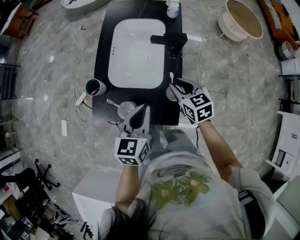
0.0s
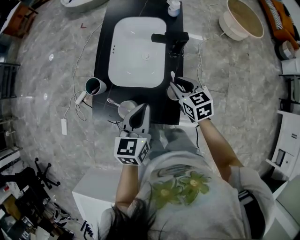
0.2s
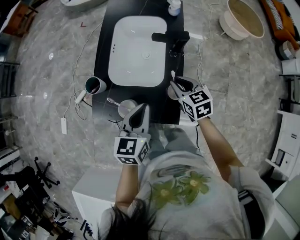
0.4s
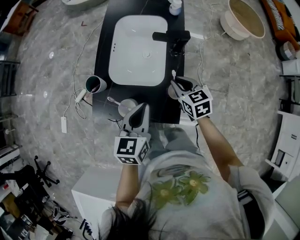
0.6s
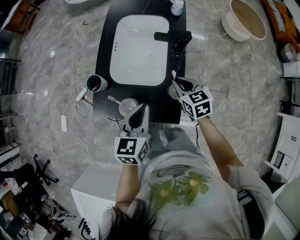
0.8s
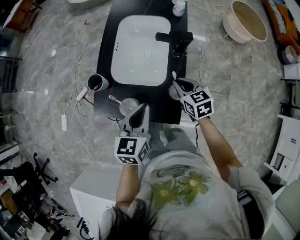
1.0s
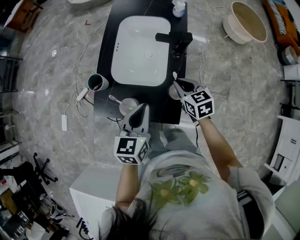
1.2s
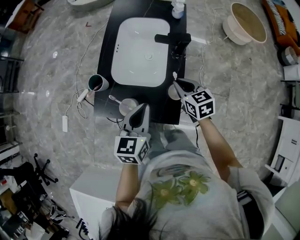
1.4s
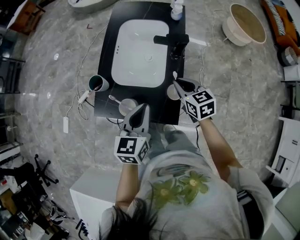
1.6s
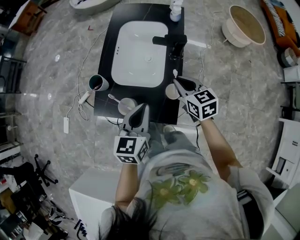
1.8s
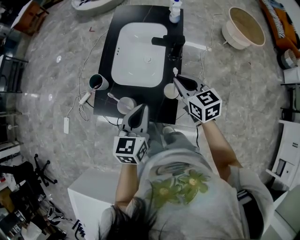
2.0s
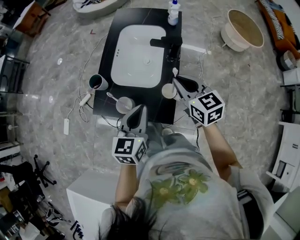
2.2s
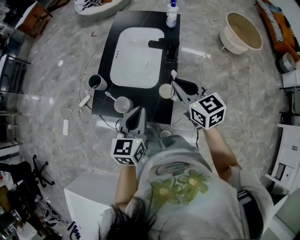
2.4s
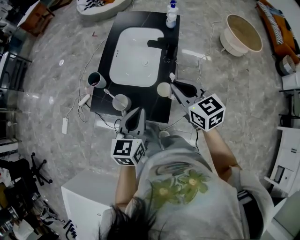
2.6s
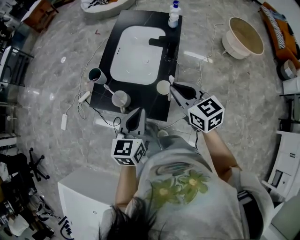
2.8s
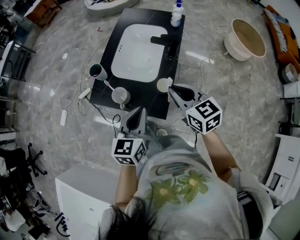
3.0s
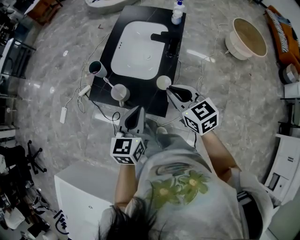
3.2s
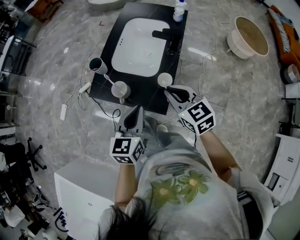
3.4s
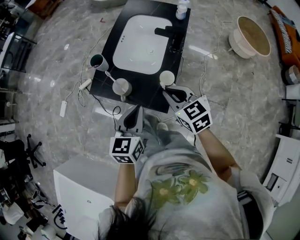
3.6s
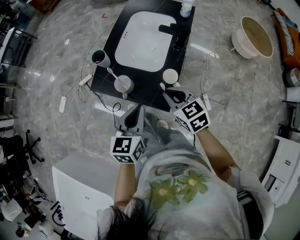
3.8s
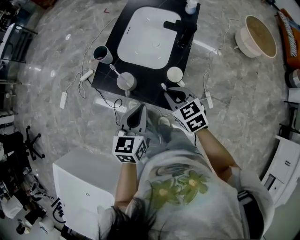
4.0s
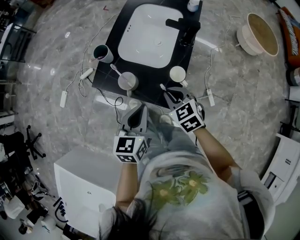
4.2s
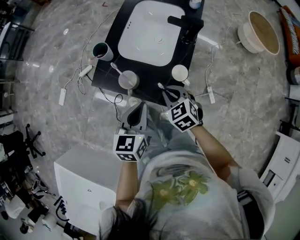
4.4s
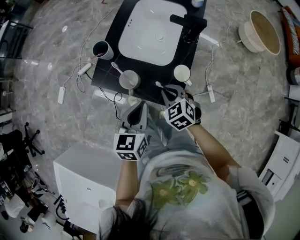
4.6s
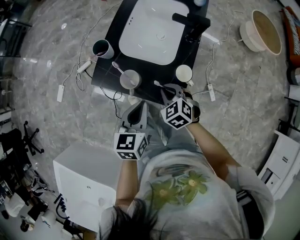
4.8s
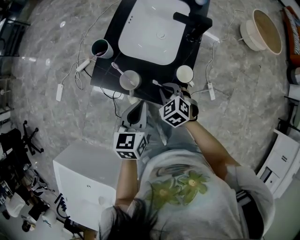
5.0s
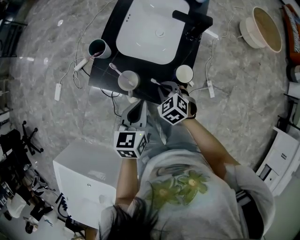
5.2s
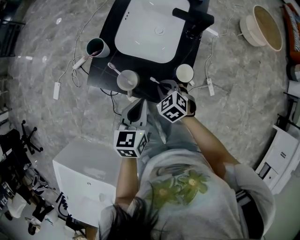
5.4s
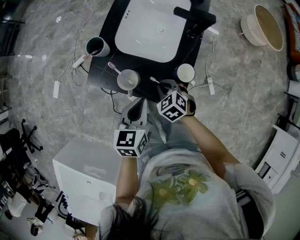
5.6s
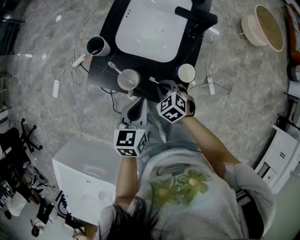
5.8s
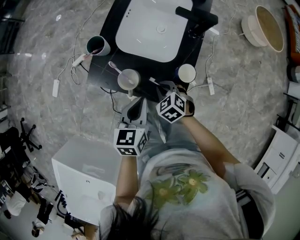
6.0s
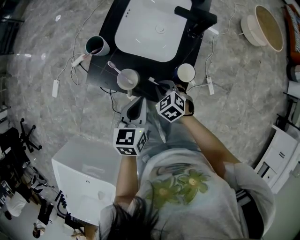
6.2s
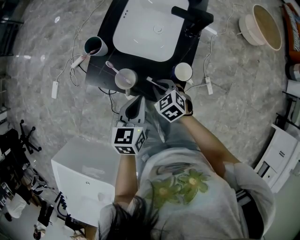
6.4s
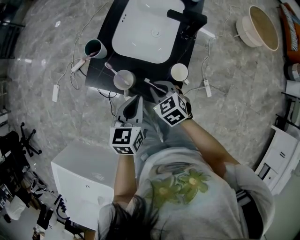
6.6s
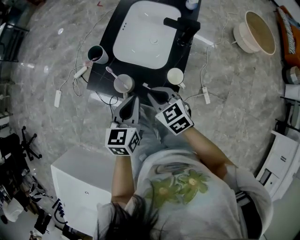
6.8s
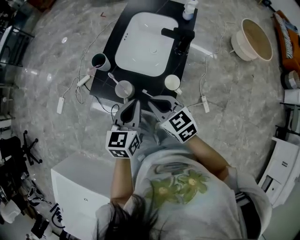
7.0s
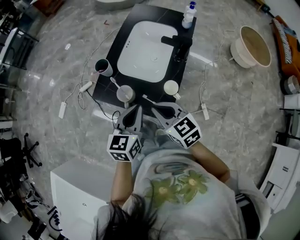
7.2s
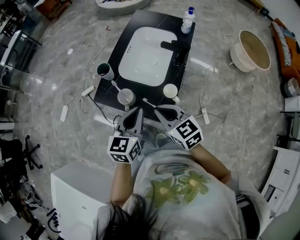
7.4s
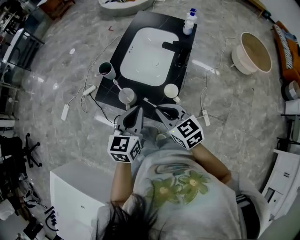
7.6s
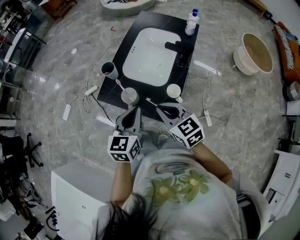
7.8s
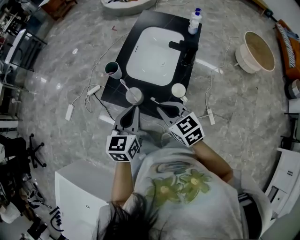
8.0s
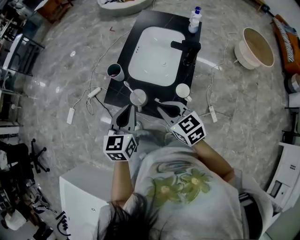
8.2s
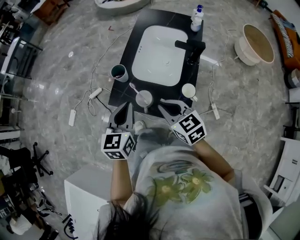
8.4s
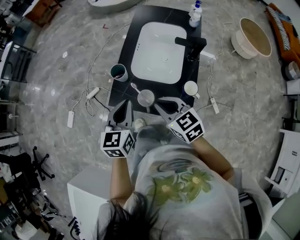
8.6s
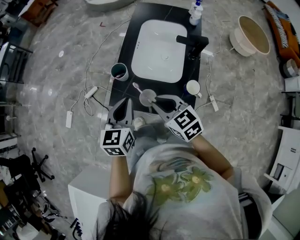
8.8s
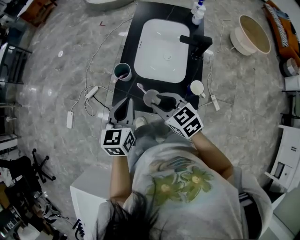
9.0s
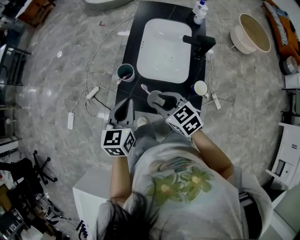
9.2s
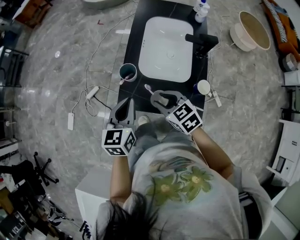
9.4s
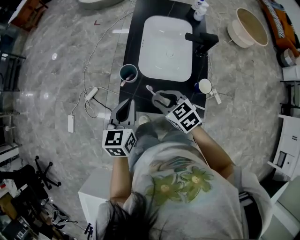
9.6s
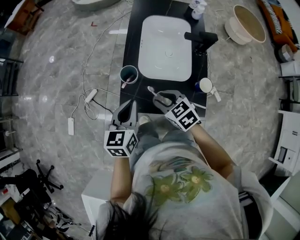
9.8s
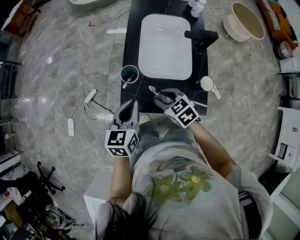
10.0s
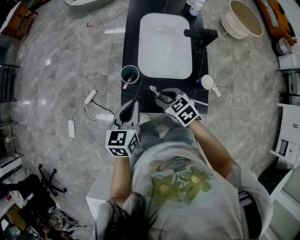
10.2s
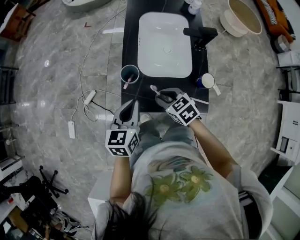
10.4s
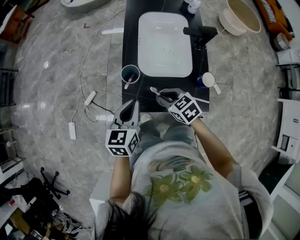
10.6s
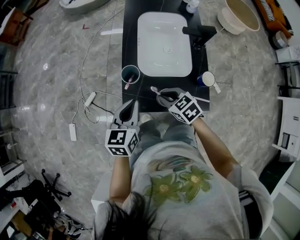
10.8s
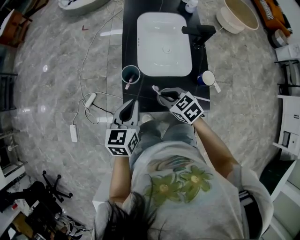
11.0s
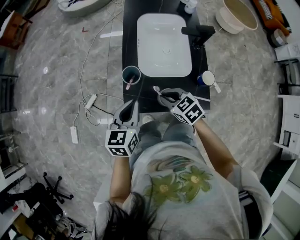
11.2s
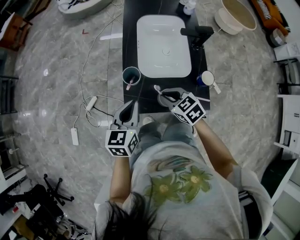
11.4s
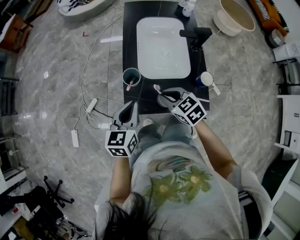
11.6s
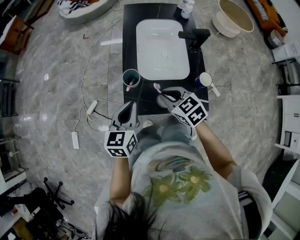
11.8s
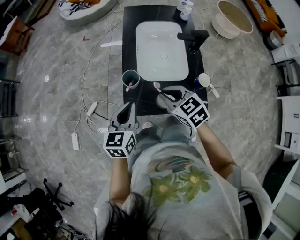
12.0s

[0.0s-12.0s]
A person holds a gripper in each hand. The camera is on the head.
0.0s to 1.6s: There are only small adjustments of the grippers.
1.6s to 3.0s: The left gripper is displaced backward by roughly 10 cm. Meanwhile the right gripper heads upward and backward, covering some 15 cm.
3.0s to 4.4s: The right gripper travels downward and to the left by approximately 20 cm, and swivels about 30 degrees. The left gripper moves downward and to the left, about 10 cm.
4.4s to 6.0s: The right gripper goes approximately 10 cm downward; the left gripper is displaced downward by about 5 cm.
6.0s to 7.6s: The left gripper travels upward by approximately 15 cm; the right gripper moves upward, some 25 cm, and angles its fingers upward, by about 30 degrees.
7.6s to 9.0s: Both grippers move to the left and forward, approximately 20 cm.
9.0s to 10.4s: The right gripper travels downward and forward by some 10 cm. The left gripper heads to the left, covering roughly 5 cm.
10.4s to 12.0s: The right gripper goes roughly 10 cm upward.

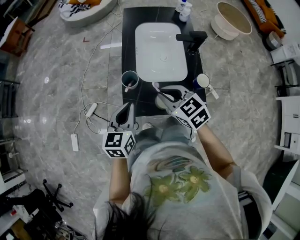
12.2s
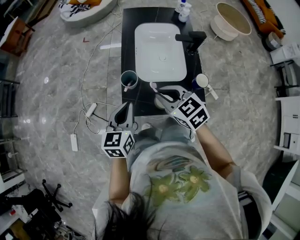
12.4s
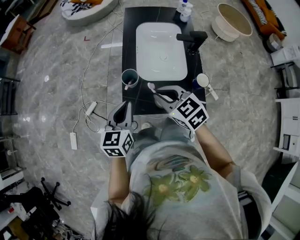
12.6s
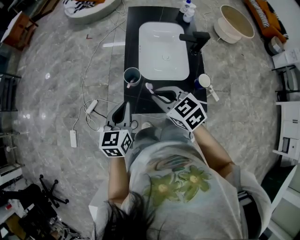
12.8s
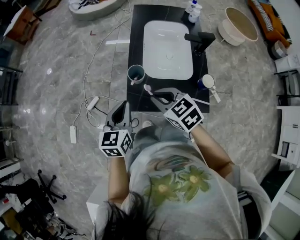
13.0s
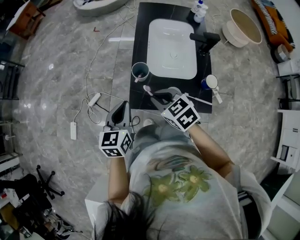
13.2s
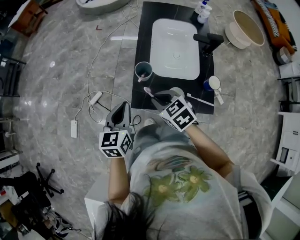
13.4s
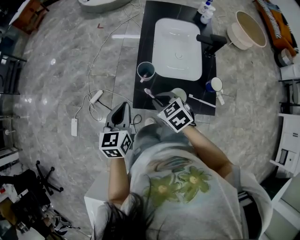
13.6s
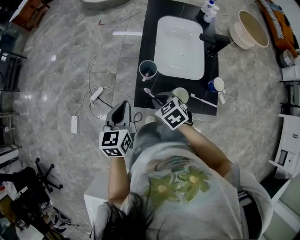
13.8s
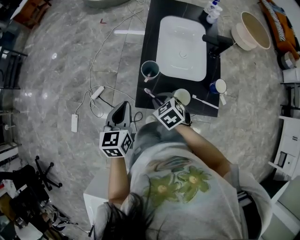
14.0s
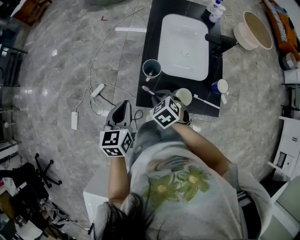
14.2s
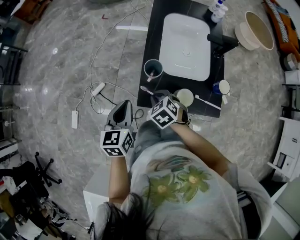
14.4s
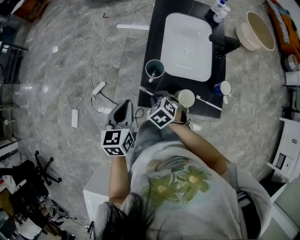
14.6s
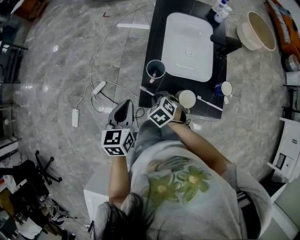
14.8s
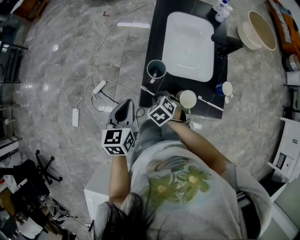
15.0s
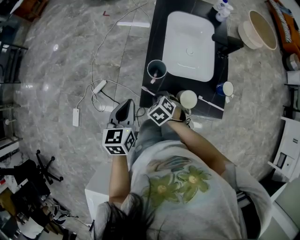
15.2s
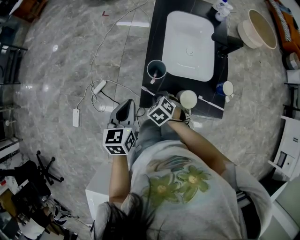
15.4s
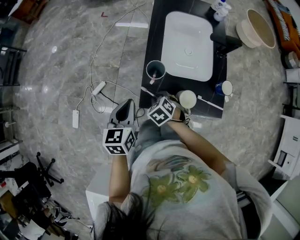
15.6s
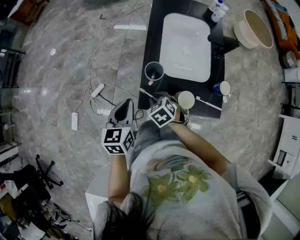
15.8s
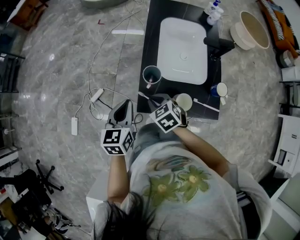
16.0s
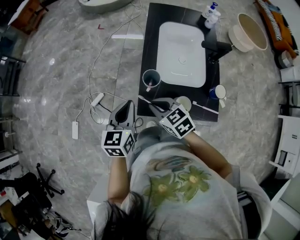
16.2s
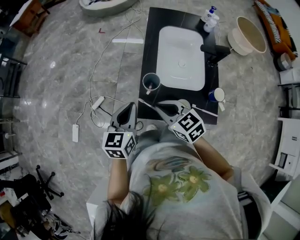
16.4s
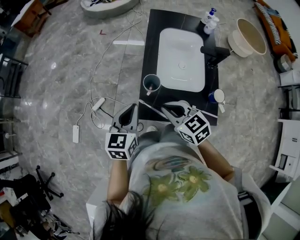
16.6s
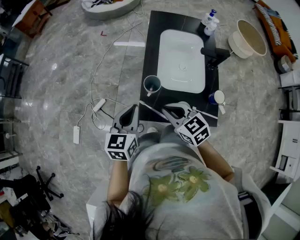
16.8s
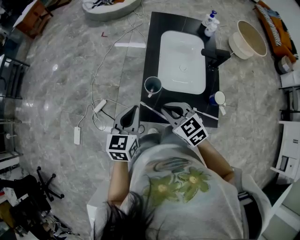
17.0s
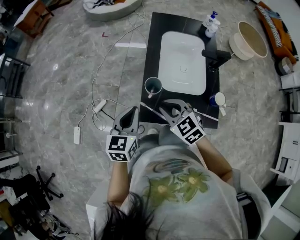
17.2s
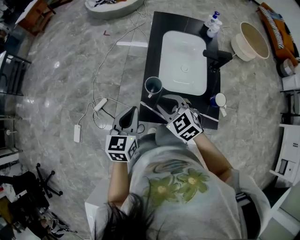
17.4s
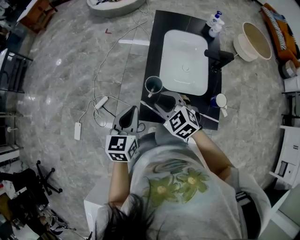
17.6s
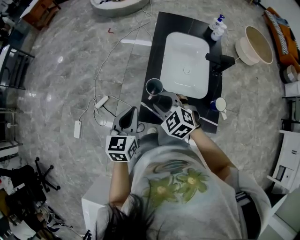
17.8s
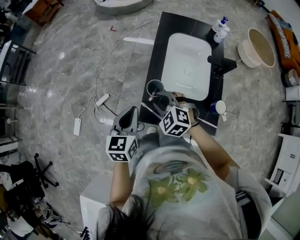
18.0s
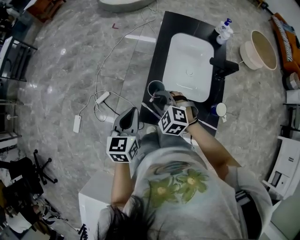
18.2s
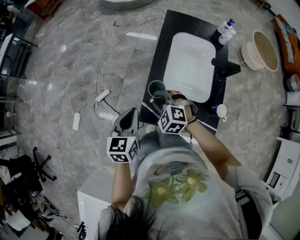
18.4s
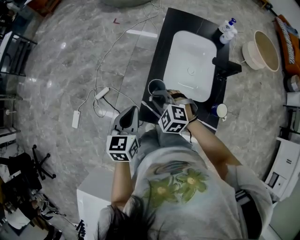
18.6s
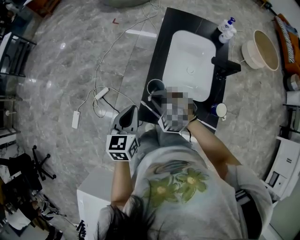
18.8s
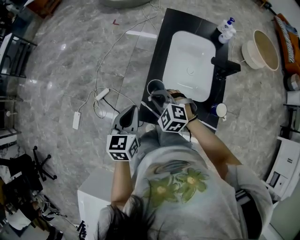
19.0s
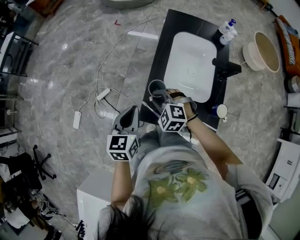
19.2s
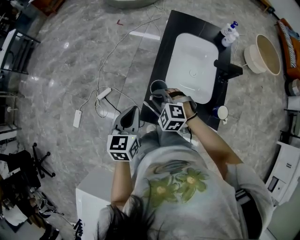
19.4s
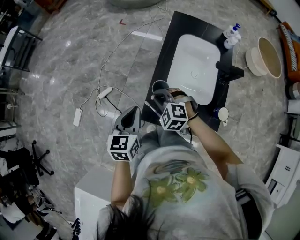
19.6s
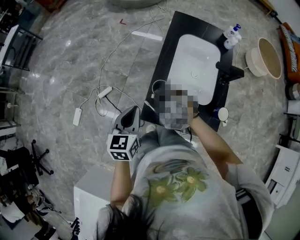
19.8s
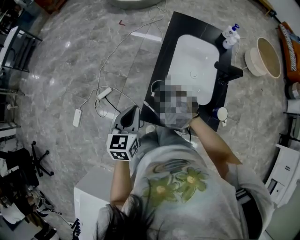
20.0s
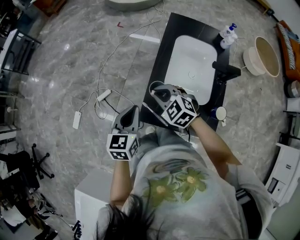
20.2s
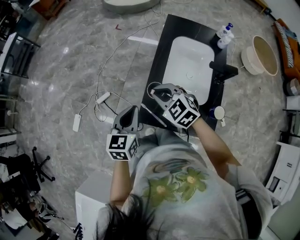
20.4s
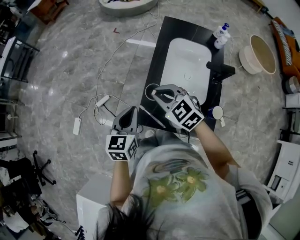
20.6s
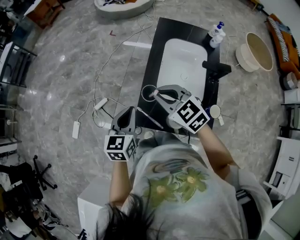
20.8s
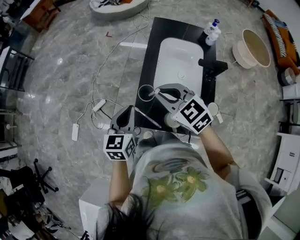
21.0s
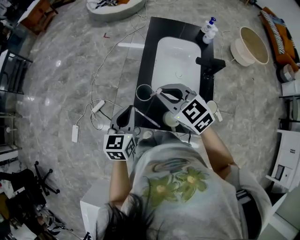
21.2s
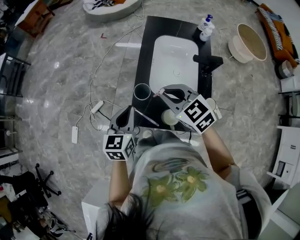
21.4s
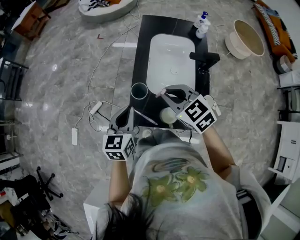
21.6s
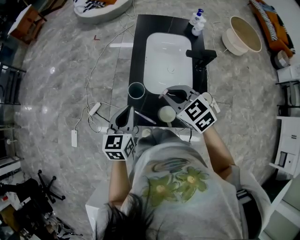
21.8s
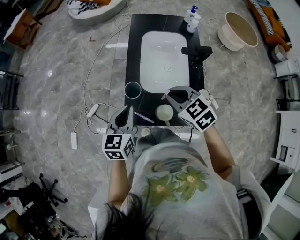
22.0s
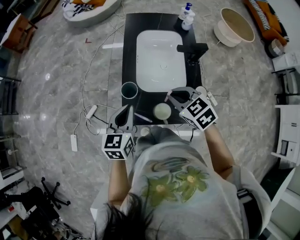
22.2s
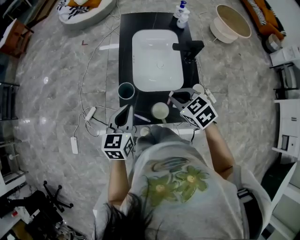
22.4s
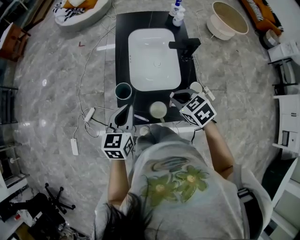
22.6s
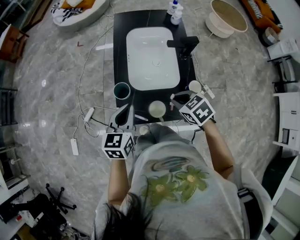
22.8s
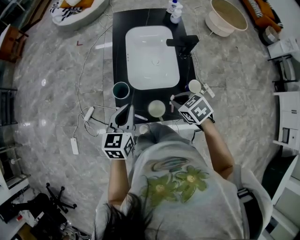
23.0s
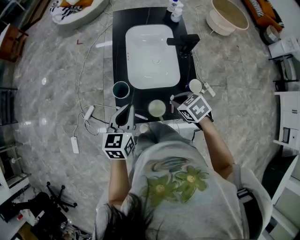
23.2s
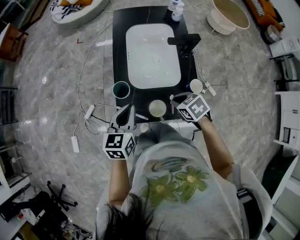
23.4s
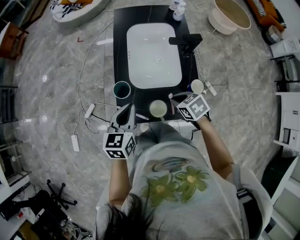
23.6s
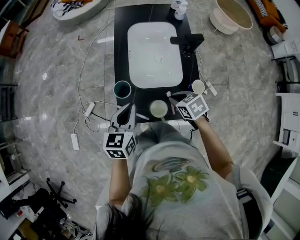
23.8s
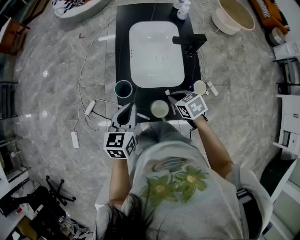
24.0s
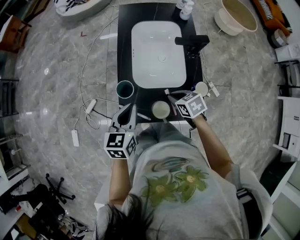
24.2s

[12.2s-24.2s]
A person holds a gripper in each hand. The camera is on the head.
12.2s to 13.8s: The left gripper goes about 10 cm to the left; the right gripper moves downward and to the left, approximately 15 cm.
13.8s to 15.2s: The right gripper travels downward by some 10 cm.
15.2s to 16.6s: The right gripper is displaced upward by roughly 20 cm, and tips its fingers upward by about 30 degrees; the left gripper shifts approximately 5 cm upward.
16.6s to 18.2s: The right gripper moves forward, approximately 10 cm, and twists some 40 degrees counterclockwise, seen from behind.
18.2s to 19.8s: There are only small adjustments of the grippers.
19.8s to 21.2s: The right gripper heads upward and to the right, covering roughly 15 cm, and rotates some 40 degrees, while the left gripper shifts roughly 5 cm to the right.
21.2s to 22.6s: The right gripper heads to the right, downward and backward, covering about 20 cm, and swivels approximately 30 degrees. Meanwhile the left gripper goes some 10 cm to the right.
22.6s to 24.2s: The right gripper heads downward, covering some 10 cm.
